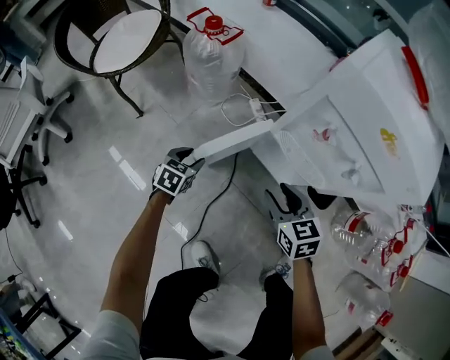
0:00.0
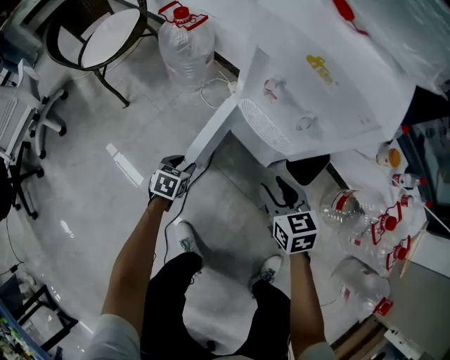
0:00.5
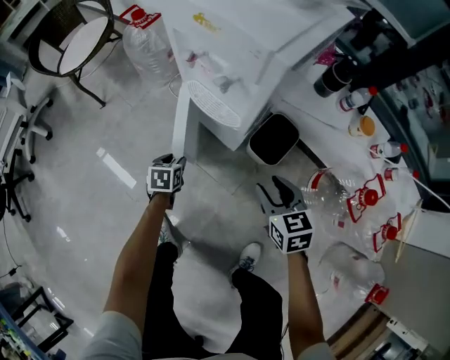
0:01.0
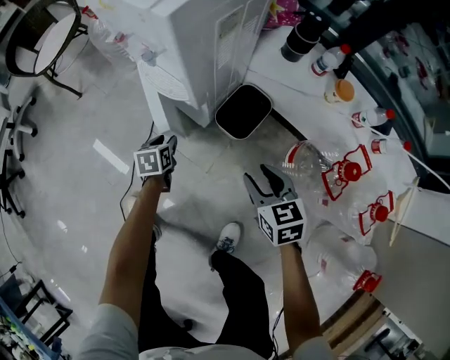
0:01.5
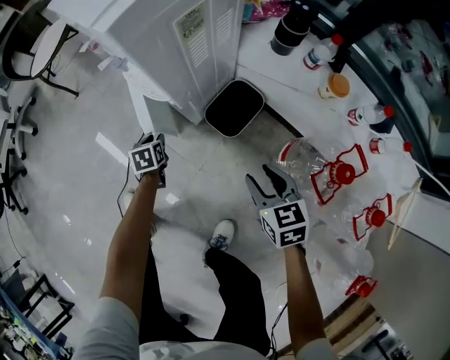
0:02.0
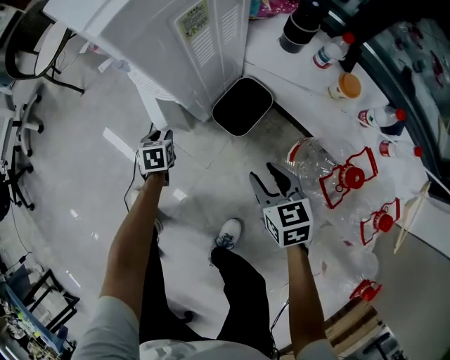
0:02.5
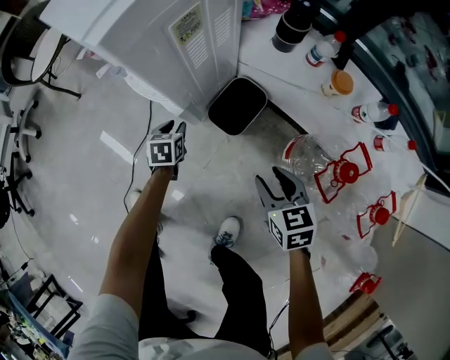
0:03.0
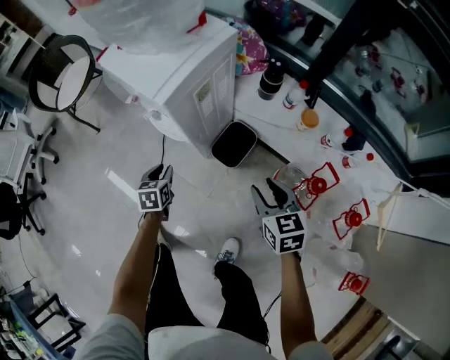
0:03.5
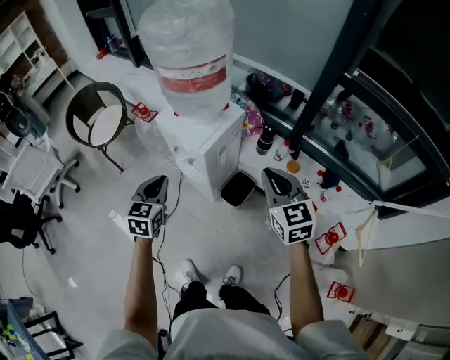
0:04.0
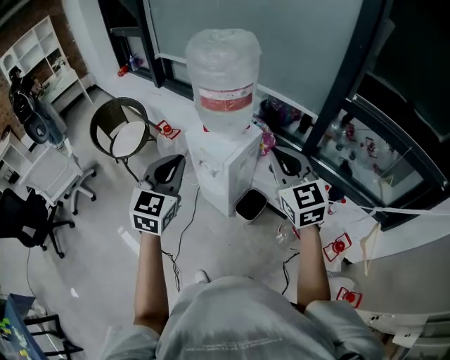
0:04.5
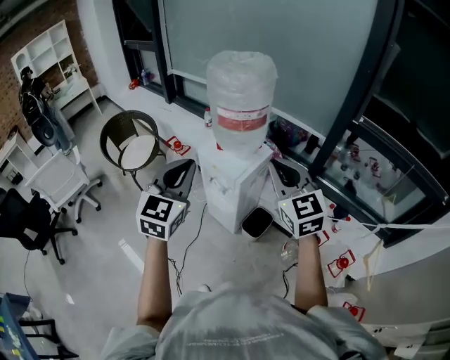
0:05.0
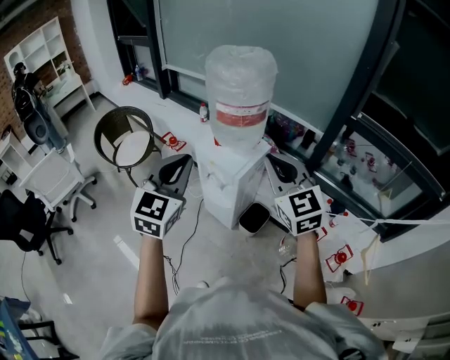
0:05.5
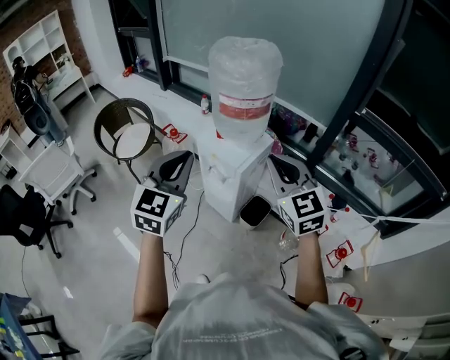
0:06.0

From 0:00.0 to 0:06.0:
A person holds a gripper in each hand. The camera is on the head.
From 0:00.0 to 0:02.0: The two grippers go some 40 cm to the right and backward. The left gripper swivels approximately 40 degrees.
From 0:02.0 to 0:04.0: Both grippers move upward, approximately 60 cm. The right gripper turns by approximately 30 degrees, and closes up; the left gripper tips its fingers upward by about 30 degrees, and closes up.
From 0:04.0 to 0:06.0: The left gripper shifts approximately 25 cm upward, and swivels roughly 30 degrees; the right gripper shifts approximately 25 cm upward and to the left.

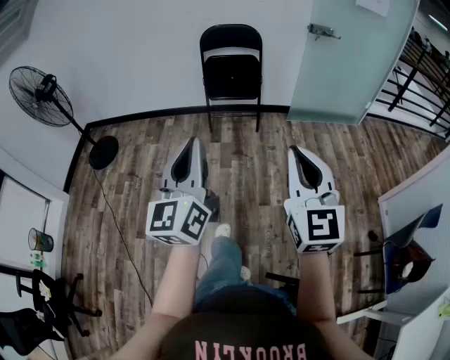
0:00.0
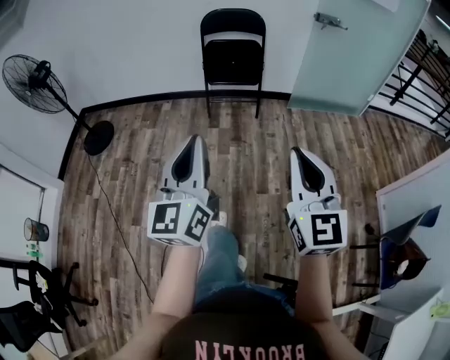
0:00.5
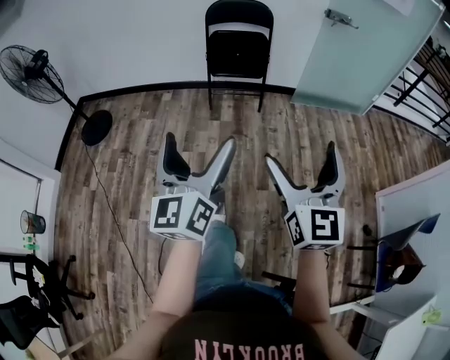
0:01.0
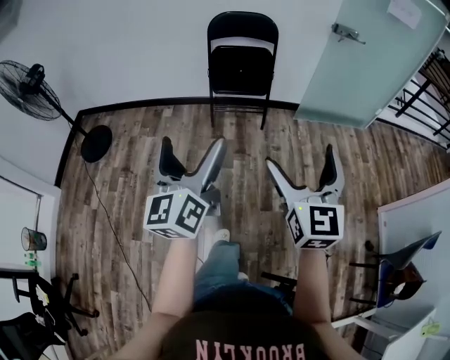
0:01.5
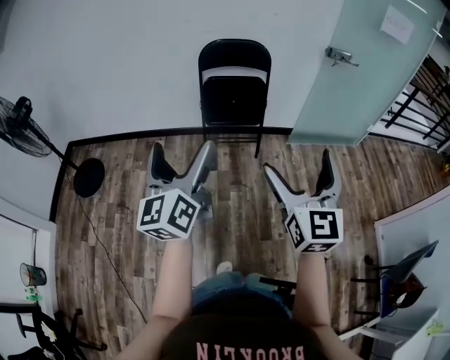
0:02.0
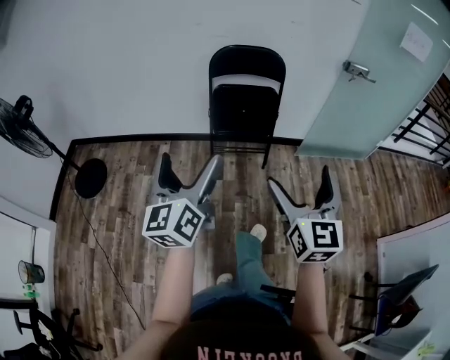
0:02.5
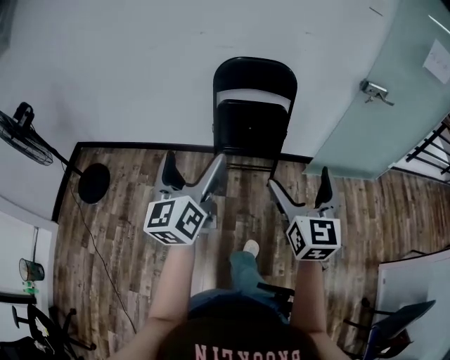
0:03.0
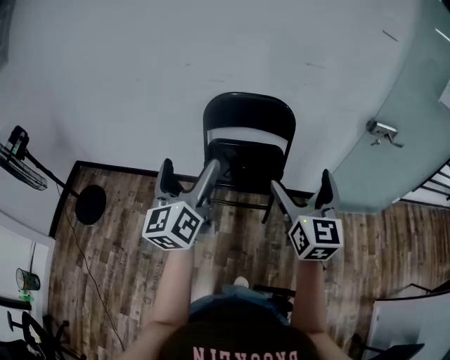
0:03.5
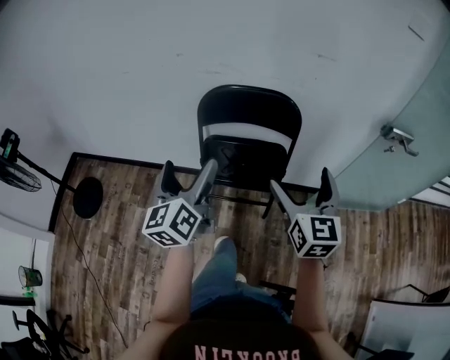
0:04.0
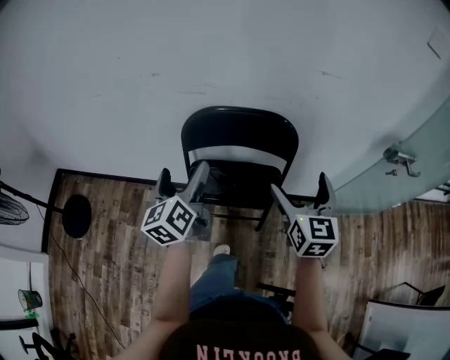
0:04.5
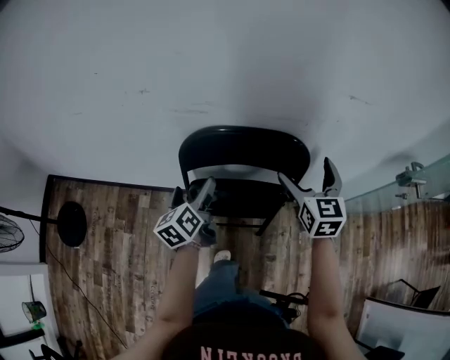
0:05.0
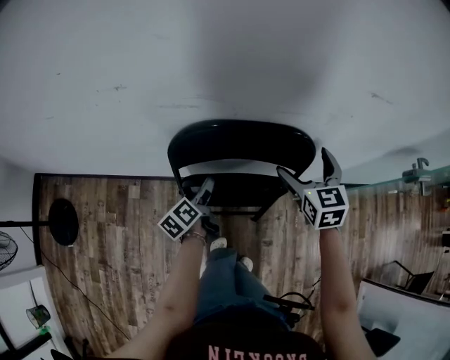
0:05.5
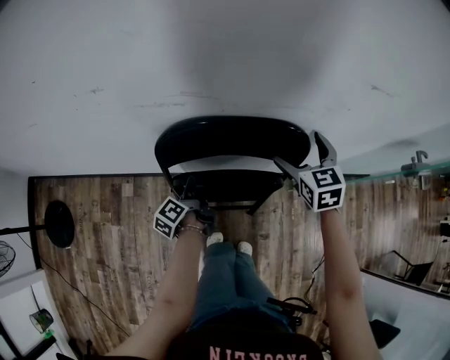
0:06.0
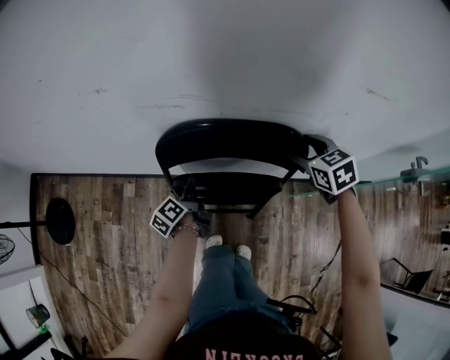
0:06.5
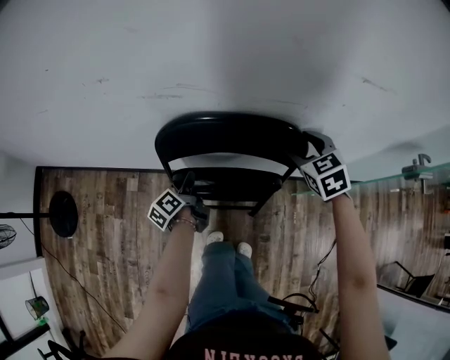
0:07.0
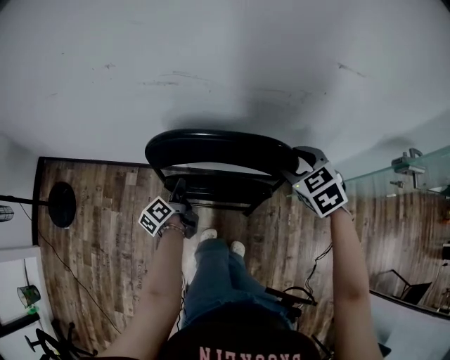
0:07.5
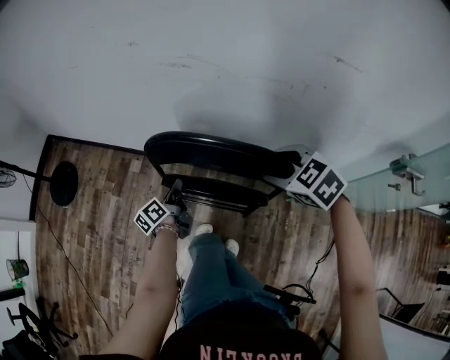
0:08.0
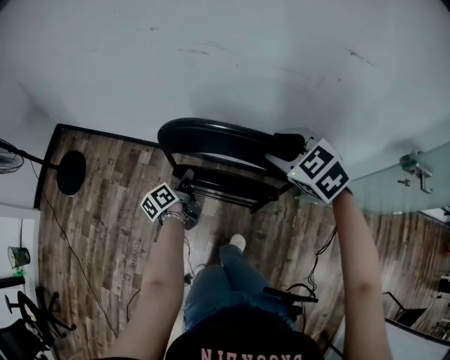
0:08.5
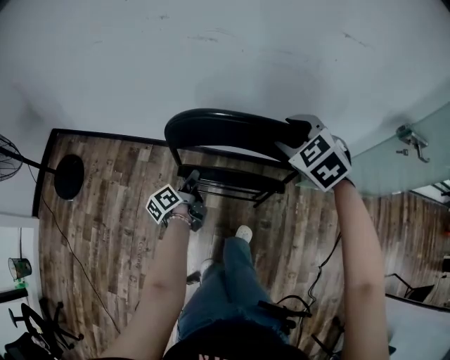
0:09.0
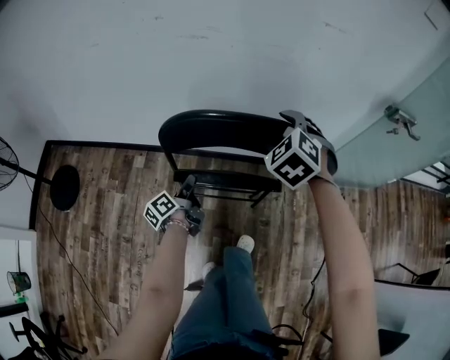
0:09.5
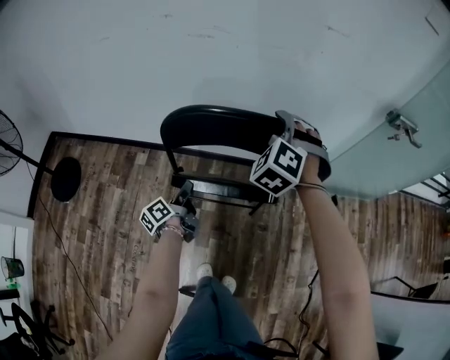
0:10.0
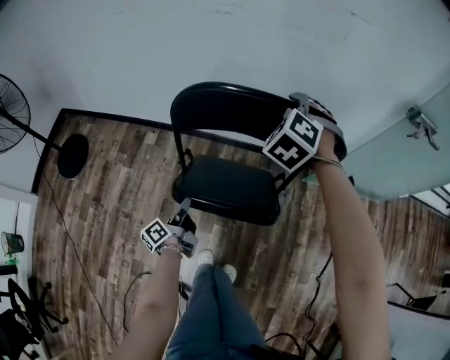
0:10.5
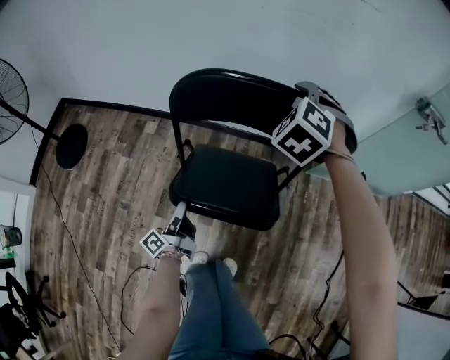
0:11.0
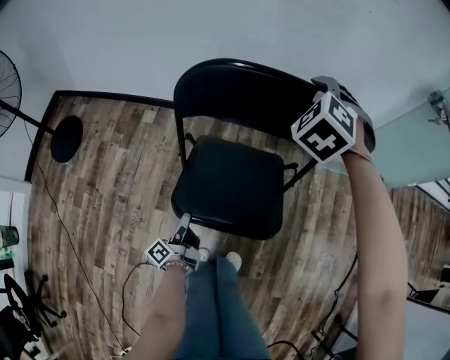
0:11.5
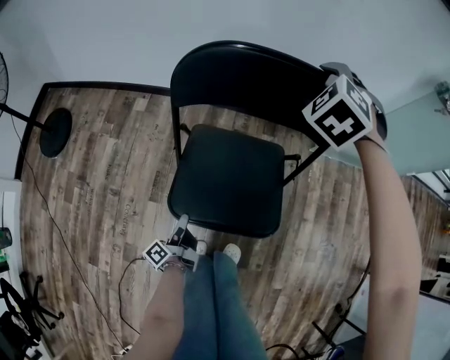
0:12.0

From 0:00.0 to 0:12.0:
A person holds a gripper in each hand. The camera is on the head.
From 0:00.0 to 0:02.0: Both grippers move forward, approximately 30 cm. The left gripper opens its fingers; the right gripper opens up.
From 0:02.0 to 0:04.0: Both grippers are carried forward, about 50 cm.
From 0:04.0 to 0:06.0: The left gripper travels downward and forward by about 40 cm, rotates around the line of its fingers by some 50 degrees, counterclockwise from behind, and closes up; the right gripper travels forward by approximately 35 cm, and rotates approximately 30 degrees.
From 0:06.0 to 0:08.0: The right gripper changes place by some 15 cm, changes its angle by about 50 degrees, and closes its fingers, while the left gripper changes place by about 15 cm.
From 0:08.0 to 0:10.0: The left gripper changes place by some 15 cm. The right gripper moves approximately 10 cm, and swivels some 50 degrees.
From 0:10.0 to 0:12.0: The left gripper travels backward and downward by approximately 35 cm, while the right gripper shifts some 10 cm downward.

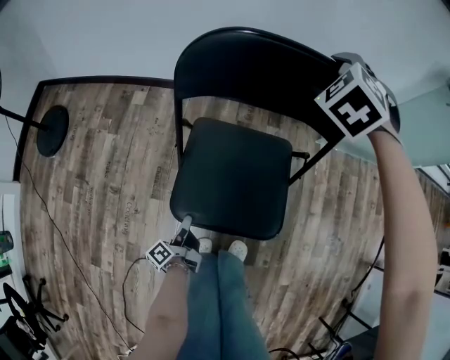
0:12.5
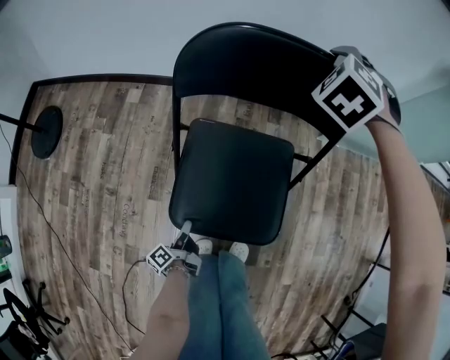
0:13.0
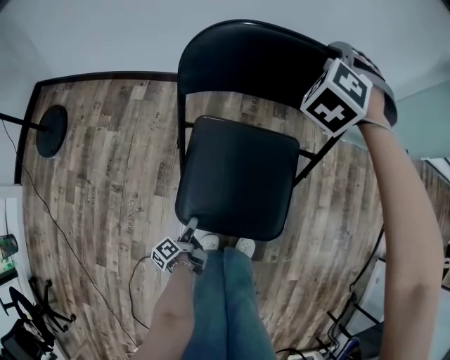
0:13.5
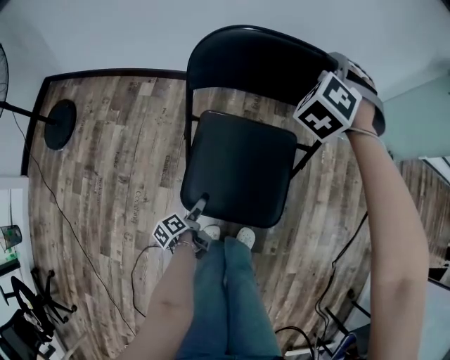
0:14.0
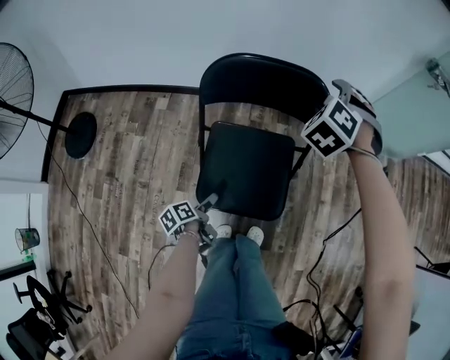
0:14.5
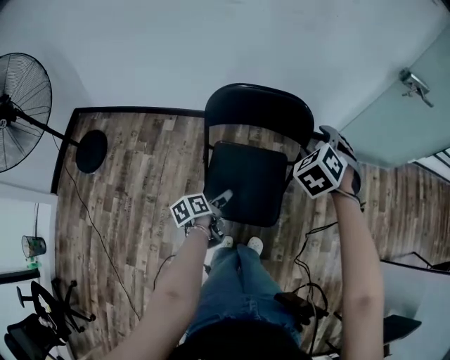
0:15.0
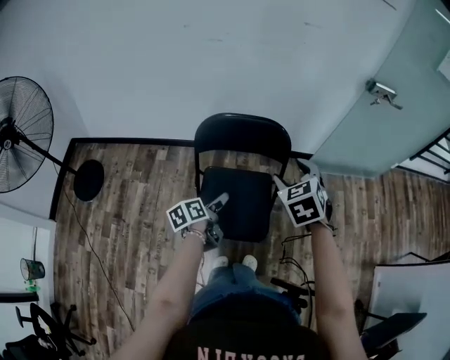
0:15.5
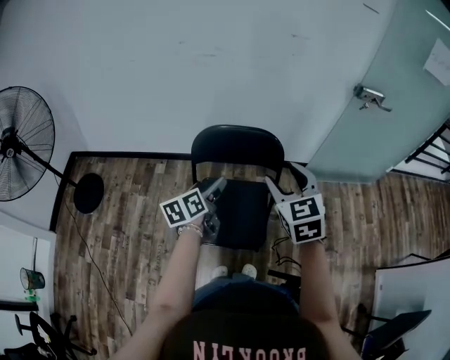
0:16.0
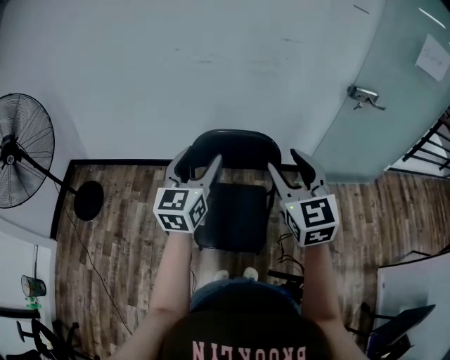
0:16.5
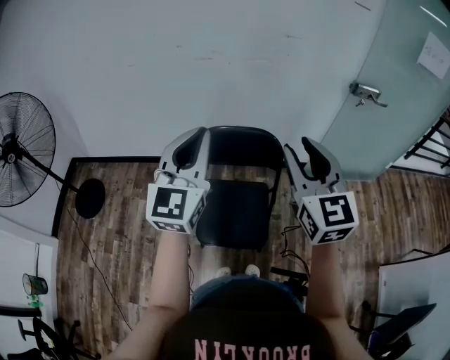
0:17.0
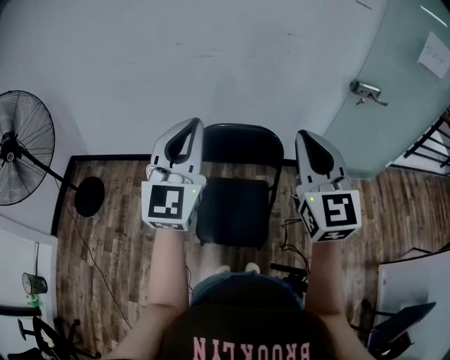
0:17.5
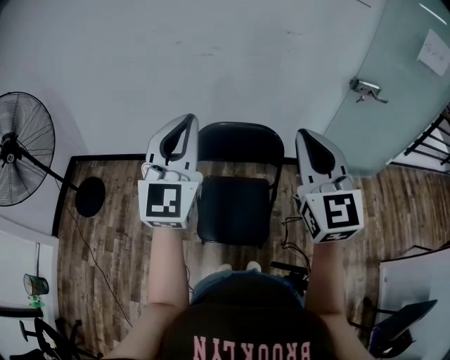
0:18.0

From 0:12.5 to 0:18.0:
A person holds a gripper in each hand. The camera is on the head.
From 0:12.5 to 0:14.5: The left gripper moves upward, some 10 cm, tips its fingers downward by roughly 30 degrees, and opens. The right gripper travels backward and to the right by roughly 10 cm.
From 0:14.5 to 0:16.0: The left gripper goes approximately 35 cm upward, and rolls clockwise, seen from behind, by about 40 degrees. Meanwhile the right gripper is displaced backward and upward by some 30 cm, and twists roughly 50 degrees clockwise, seen from behind.
From 0:16.0 to 0:18.0: The right gripper is displaced upward by some 15 cm, changes its angle by roughly 30 degrees, and closes up; the left gripper goes roughly 30 cm upward, rolls clockwise, seen from behind, by approximately 60 degrees, and closes its fingers.

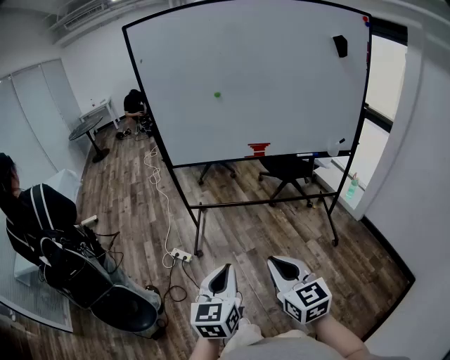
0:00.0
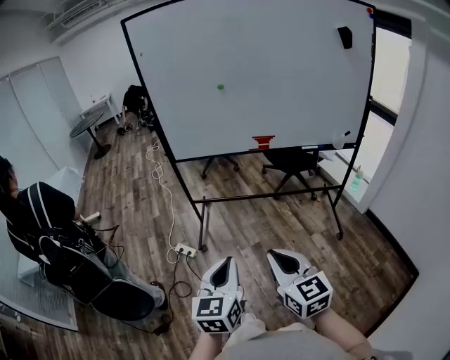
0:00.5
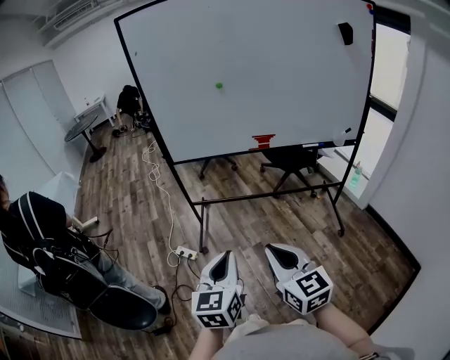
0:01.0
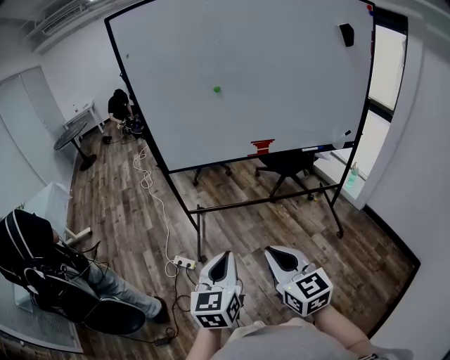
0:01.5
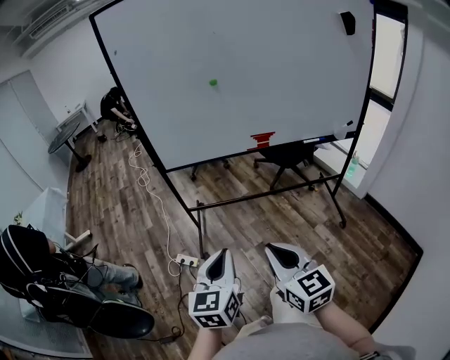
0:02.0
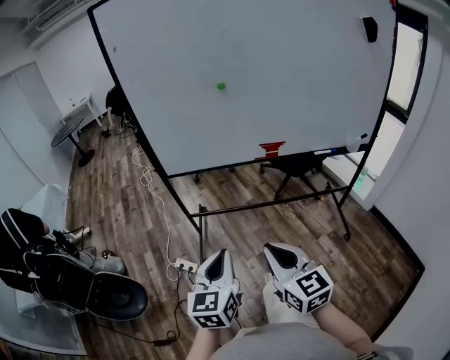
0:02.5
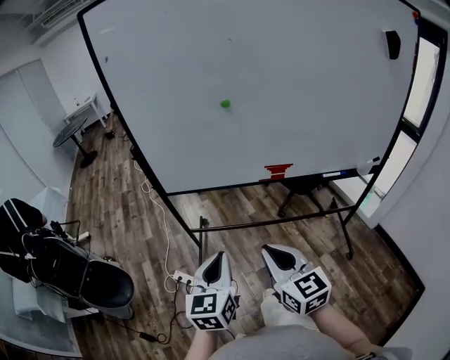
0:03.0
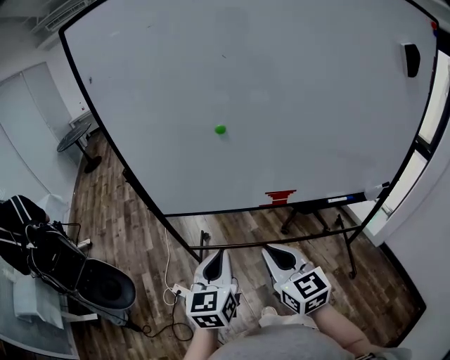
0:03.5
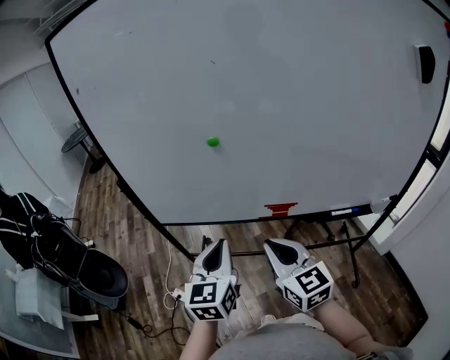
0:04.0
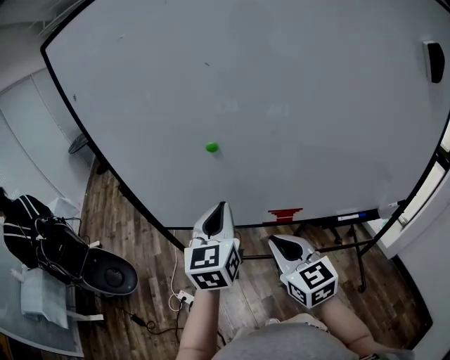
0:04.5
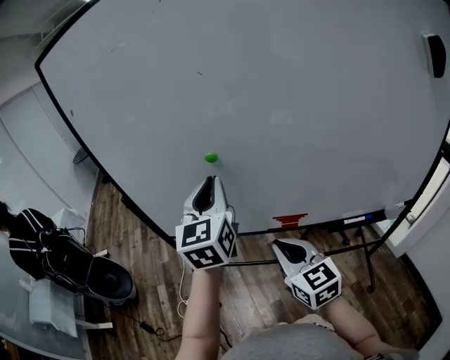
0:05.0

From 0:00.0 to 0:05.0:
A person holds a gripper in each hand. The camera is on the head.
From 0:00.0 to 0:02.5: The grippers both shift forward by some 25 cm.
From 0:02.5 to 0:05.0: The right gripper shifts roughly 35 cm forward and to the right; the left gripper is displaced forward and upward by roughly 50 cm, and turns by roughly 20 degrees.
